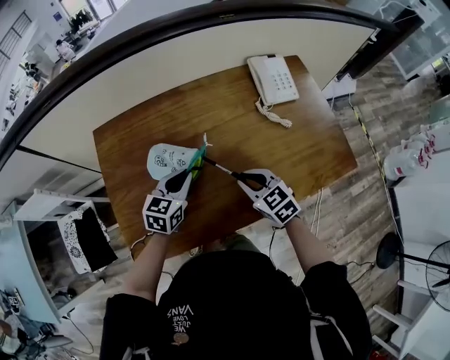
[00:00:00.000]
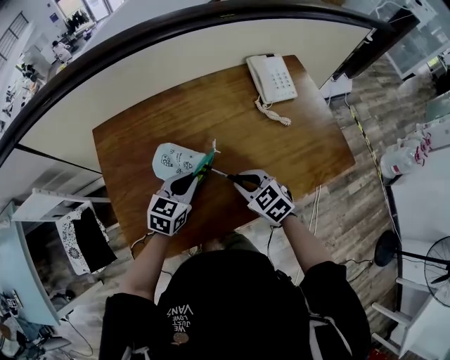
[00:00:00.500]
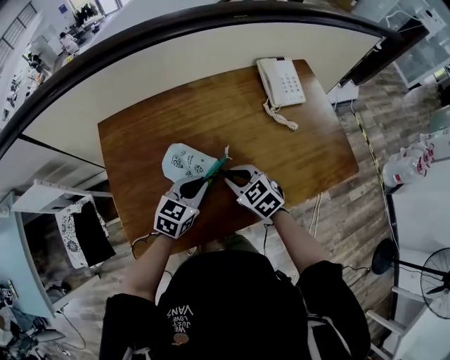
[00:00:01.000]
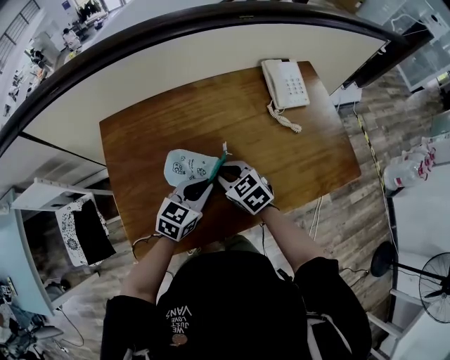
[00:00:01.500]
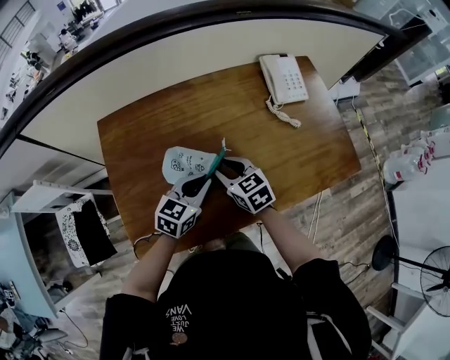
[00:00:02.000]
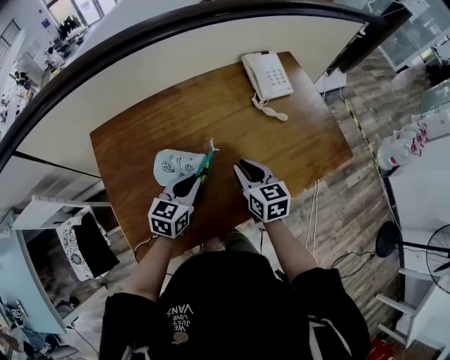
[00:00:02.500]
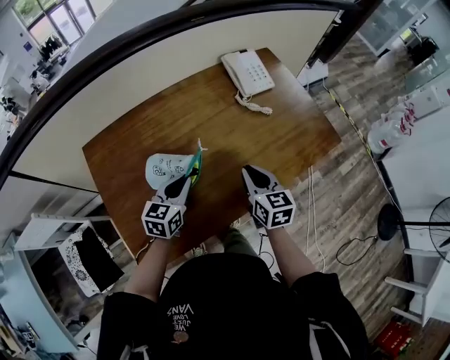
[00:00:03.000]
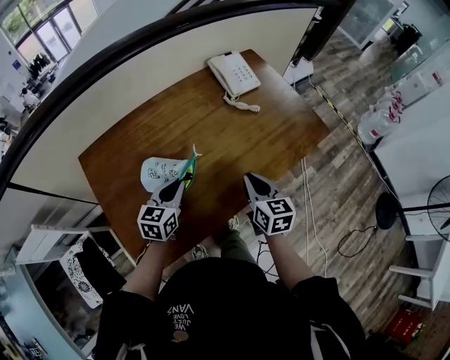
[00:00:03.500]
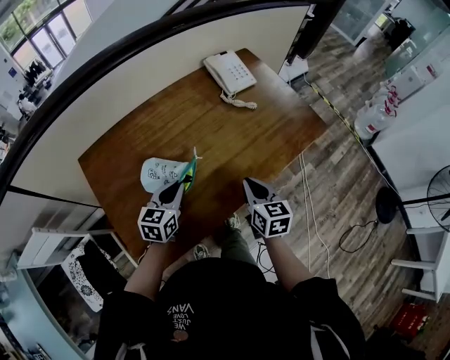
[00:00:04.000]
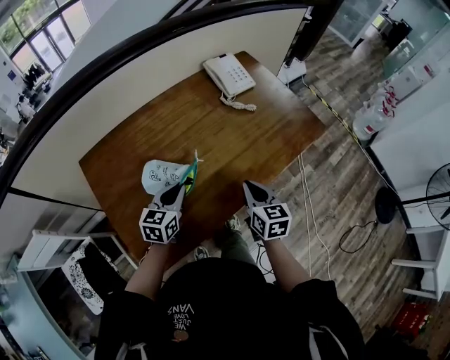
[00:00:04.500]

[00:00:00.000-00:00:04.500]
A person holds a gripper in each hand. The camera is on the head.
00:00:00.000 to 00:00:02.000: The right gripper travels to the left by approximately 10 cm.
00:00:02.000 to 00:00:04.500: The right gripper heads to the right and backward, covering about 20 cm, swivels about 50 degrees, and closes up.

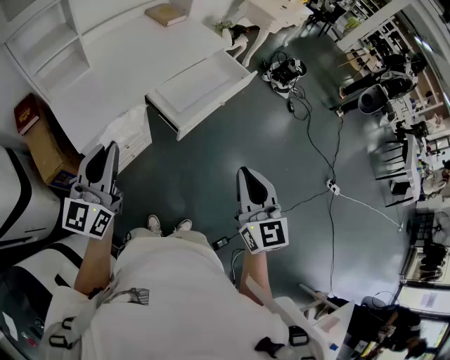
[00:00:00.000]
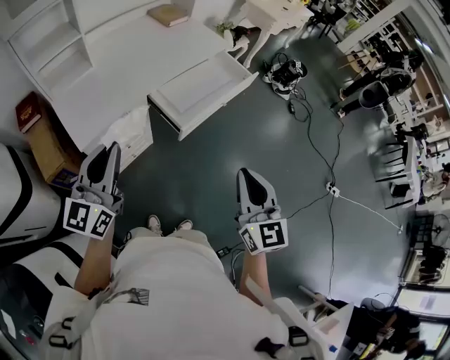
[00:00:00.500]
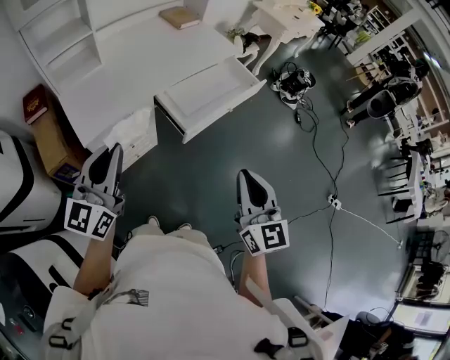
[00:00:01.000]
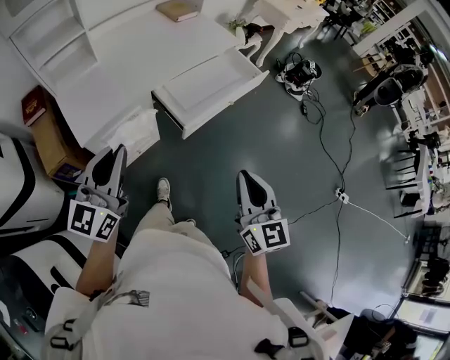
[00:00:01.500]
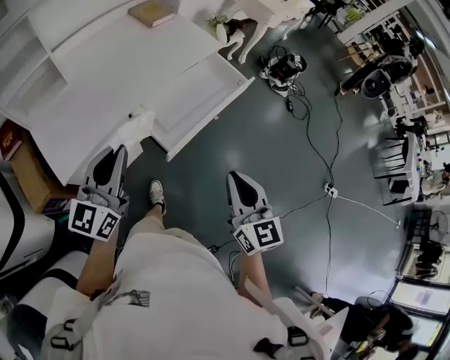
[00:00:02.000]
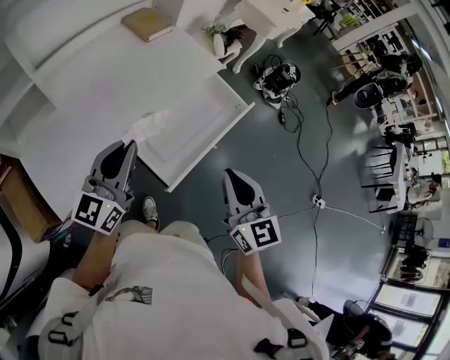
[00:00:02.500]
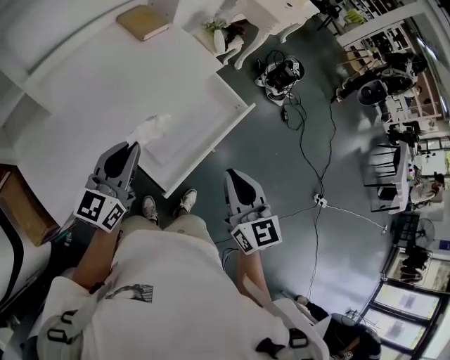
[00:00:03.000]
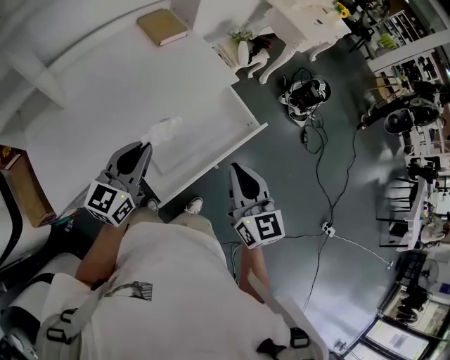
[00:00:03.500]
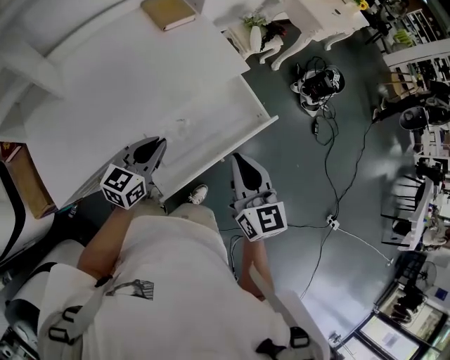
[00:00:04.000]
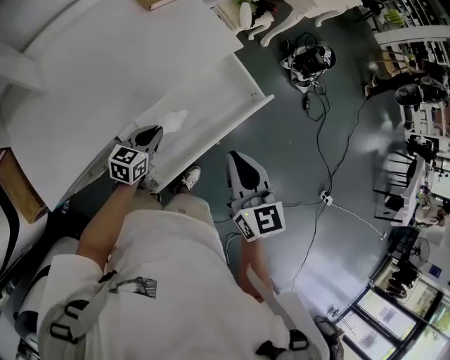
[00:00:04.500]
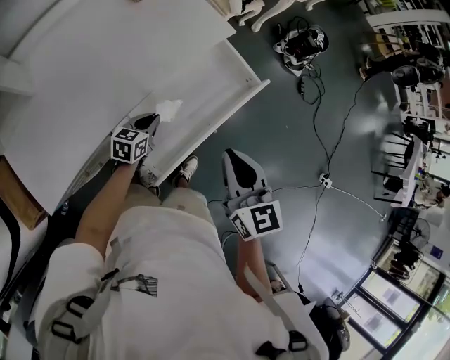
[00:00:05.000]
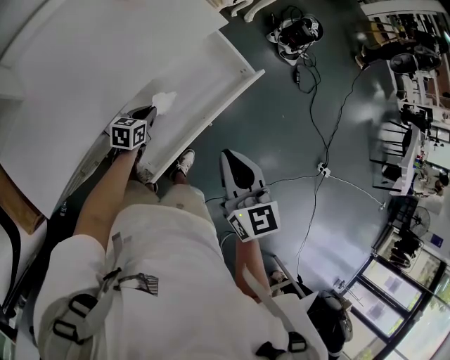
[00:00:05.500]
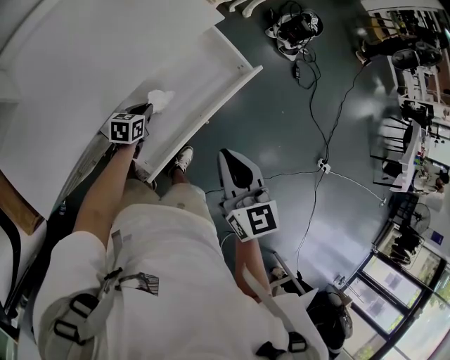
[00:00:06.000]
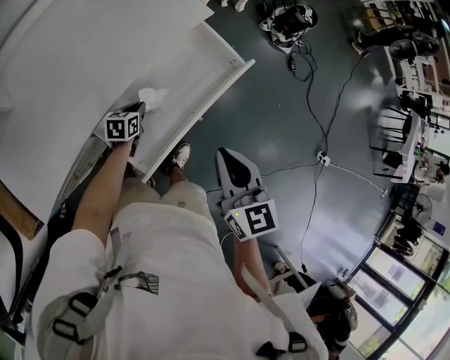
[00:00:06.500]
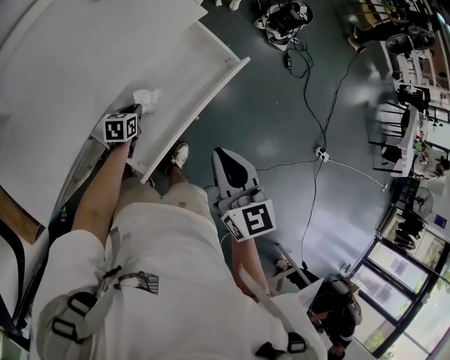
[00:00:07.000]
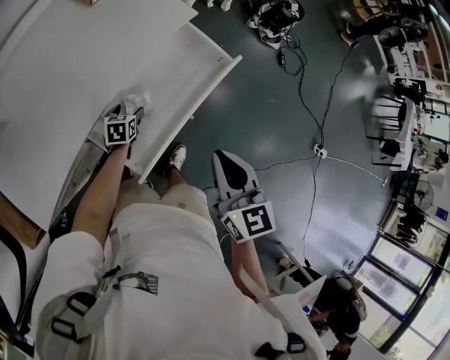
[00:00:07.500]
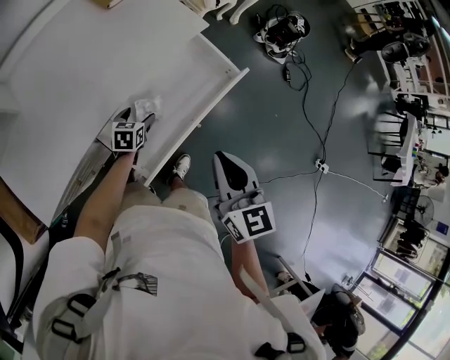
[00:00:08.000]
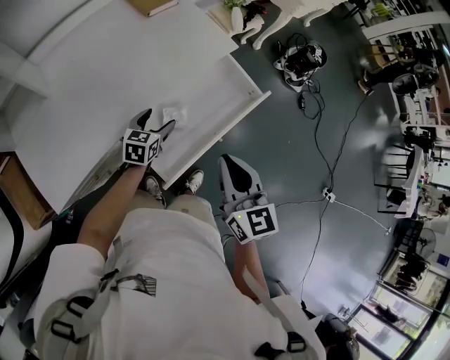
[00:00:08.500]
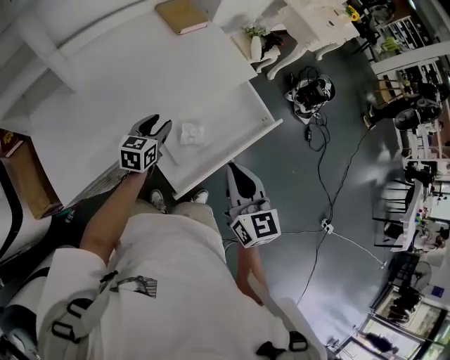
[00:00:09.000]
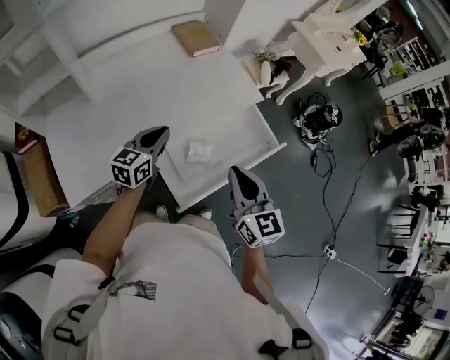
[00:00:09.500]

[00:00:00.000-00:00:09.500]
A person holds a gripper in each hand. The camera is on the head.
00:00:00.000 to 00:00:02.000: The grippers both shift forward by about 15 cm.
00:00:02.000 to 00:00:04.000: The left gripper travels forward and downward by some 35 cm, and swivels approximately 20 degrees, while the right gripper is displaced forward by some 35 cm.
00:00:04.000 to 00:00:05.500: The left gripper shifts about 25 cm downward, and changes its angle by approximately 30 degrees, while the right gripper goes some 5 cm backward.
00:00:05.500 to 00:00:07.500: The left gripper opens up.
00:00:07.500 to 00:00:09.500: The left gripper goes about 30 cm upward and to the left, angles its fingers upward, by approximately 40 degrees, and closes its fingers. Meanwhile the right gripper is displaced to the left by some 10 cm, and swivels roughly 20 degrees.

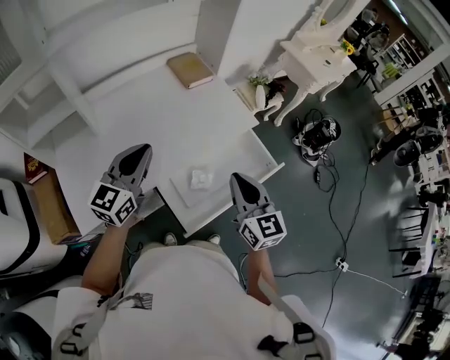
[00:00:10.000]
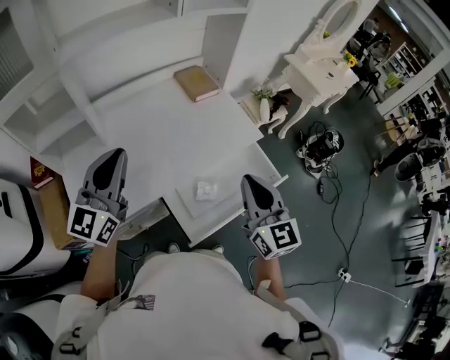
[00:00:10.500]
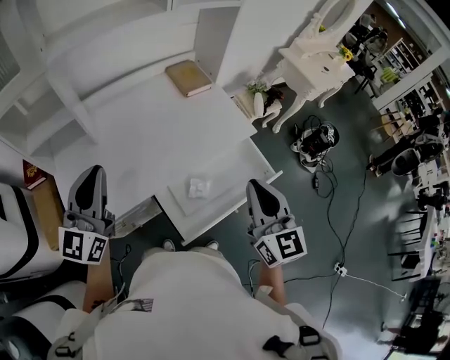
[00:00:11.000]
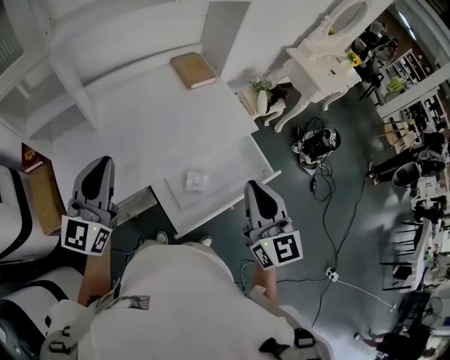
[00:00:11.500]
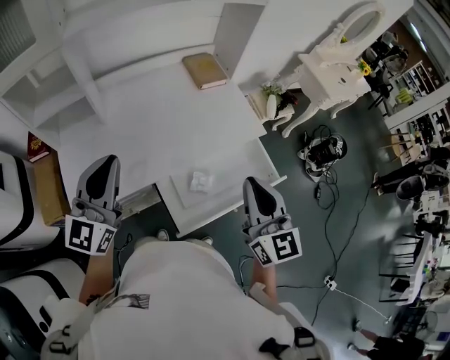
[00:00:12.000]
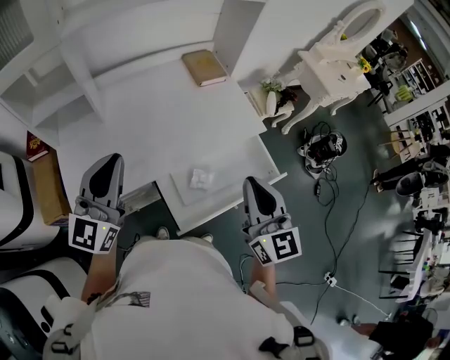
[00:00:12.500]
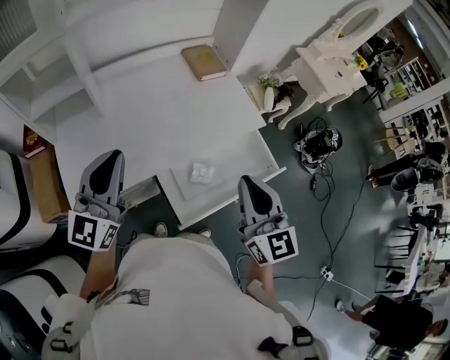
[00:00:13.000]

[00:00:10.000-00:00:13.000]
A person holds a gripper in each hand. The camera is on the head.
00:00:10.000 to 00:00:11.500: The left gripper is displaced upward, to the left and backward by approximately 10 cm. Meanwhile the right gripper shifts about 10 cm upward.
00:00:11.500 to 00:00:13.000: The grippers move only a little.

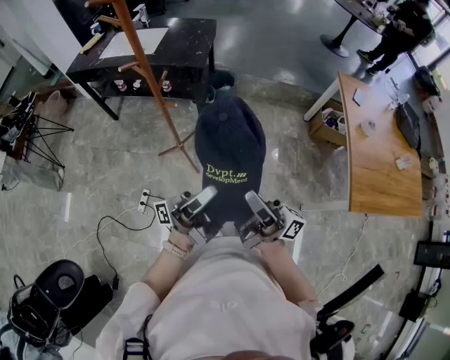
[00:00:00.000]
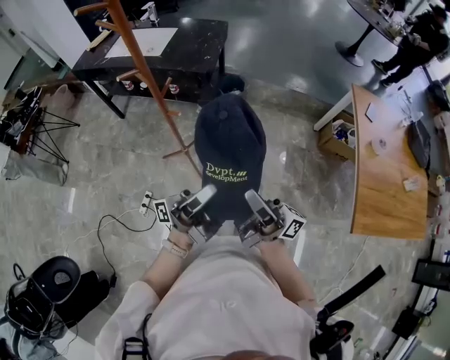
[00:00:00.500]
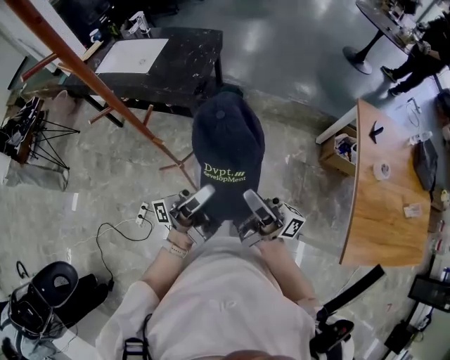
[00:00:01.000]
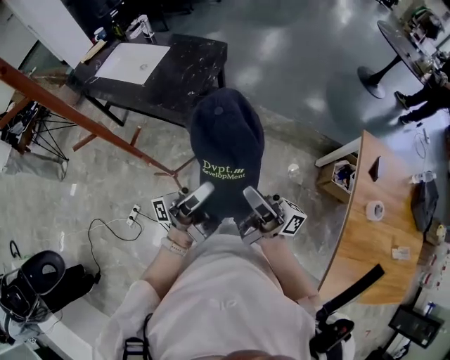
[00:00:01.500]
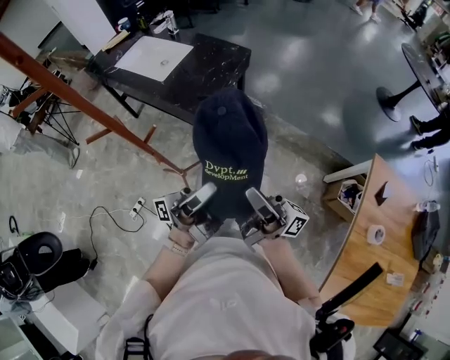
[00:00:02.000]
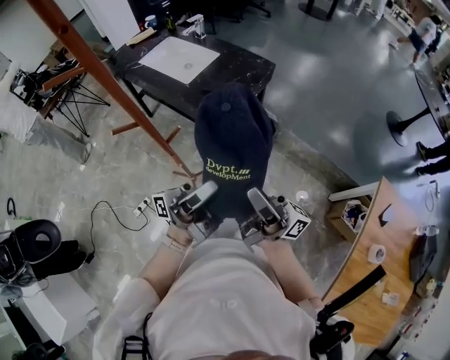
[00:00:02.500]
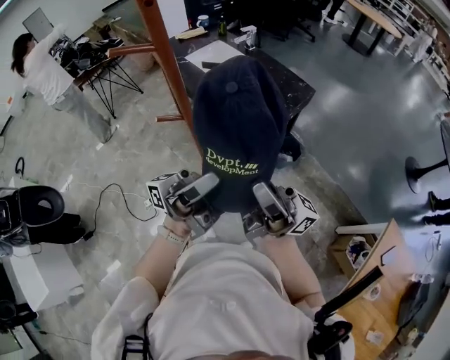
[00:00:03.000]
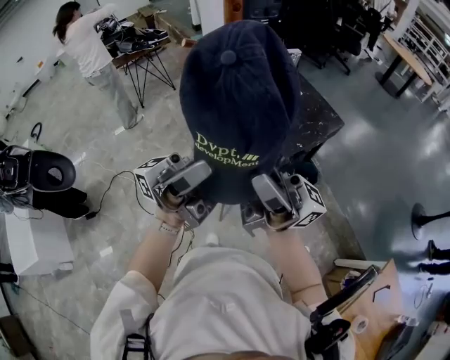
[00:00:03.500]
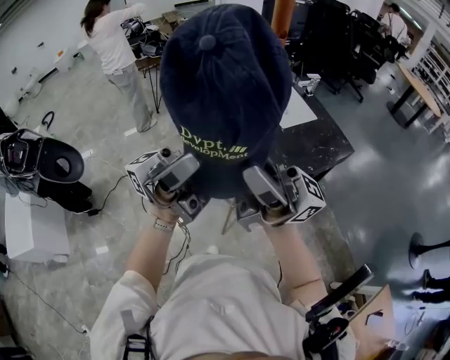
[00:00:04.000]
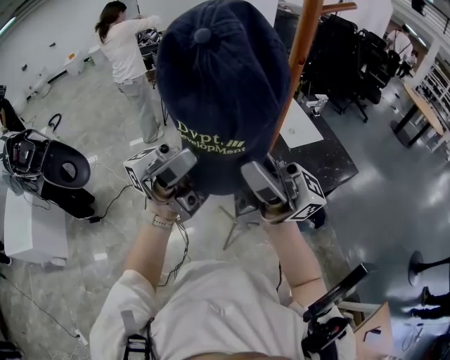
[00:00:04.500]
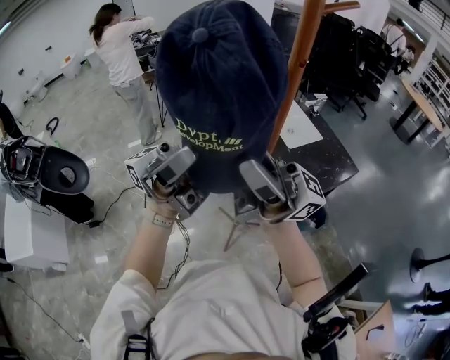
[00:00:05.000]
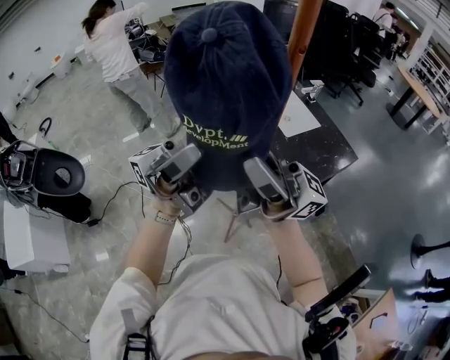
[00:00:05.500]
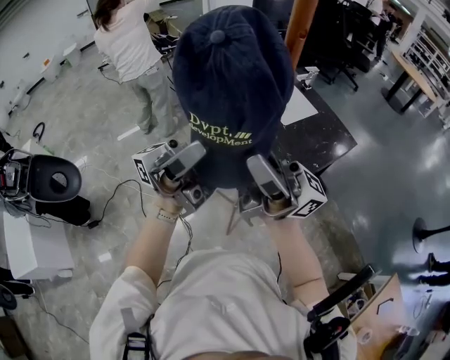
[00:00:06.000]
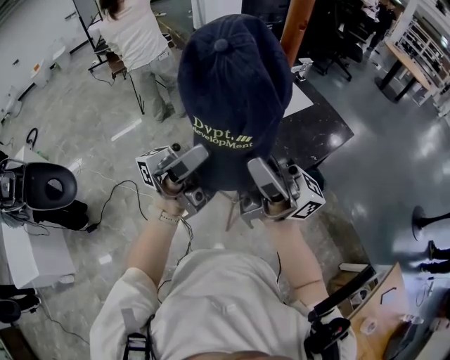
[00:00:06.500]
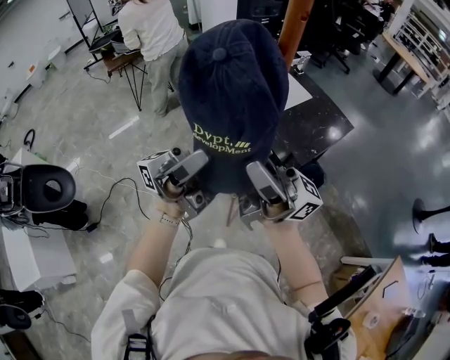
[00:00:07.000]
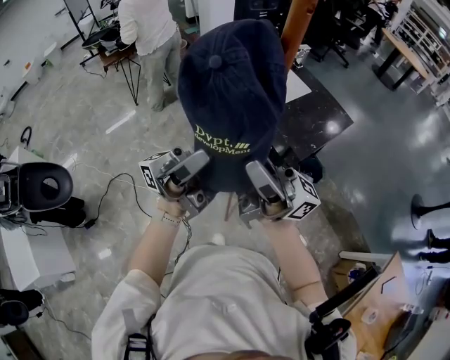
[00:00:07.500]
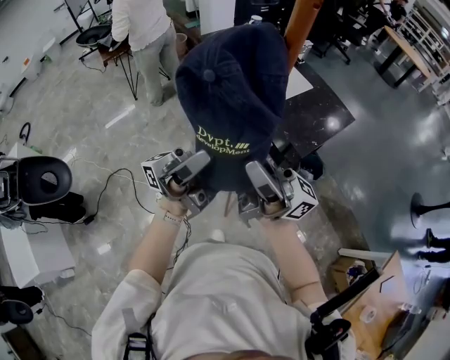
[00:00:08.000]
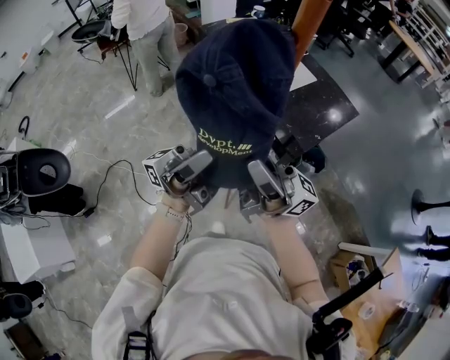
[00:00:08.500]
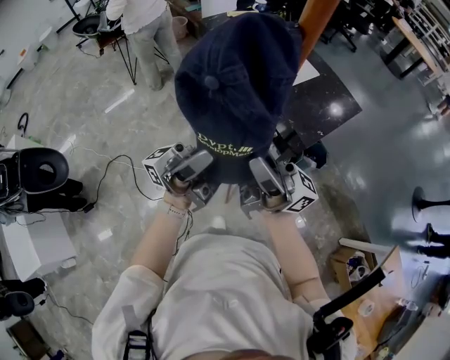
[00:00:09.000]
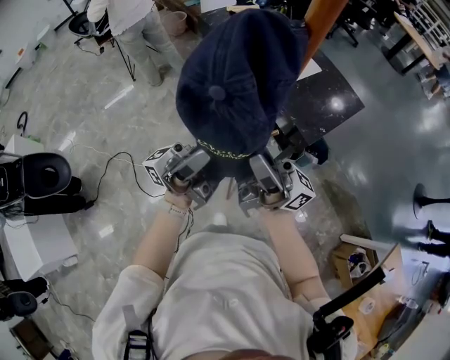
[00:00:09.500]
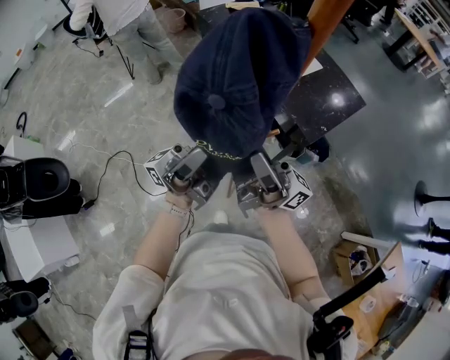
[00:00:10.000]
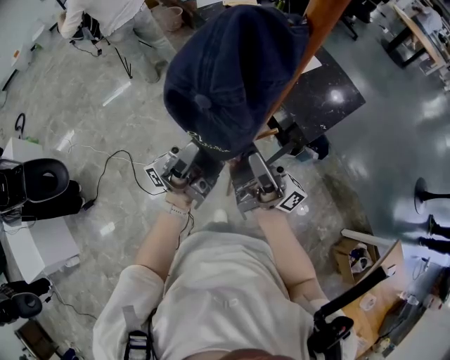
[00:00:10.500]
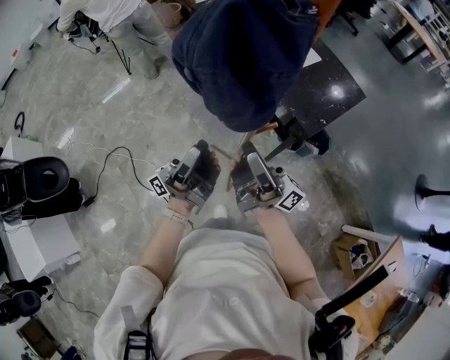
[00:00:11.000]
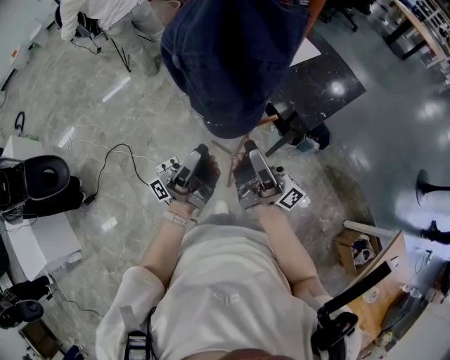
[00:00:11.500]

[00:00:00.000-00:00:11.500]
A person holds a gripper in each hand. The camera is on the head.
00:00:00.000 to 00:00:02.000: The two grippers travel together, forward, approximately 40 cm. The right gripper changes its angle by roughly 20 degrees, while the left gripper rotates some 20 degrees.
00:00:02.000 to 00:00:04.000: The left gripper moves approximately 40 cm, and rotates around the line of its fingers by roughly 50 degrees, clockwise from behind. Meanwhile the right gripper shifts by approximately 40 cm, and swivels roughly 50 degrees.
00:00:04.000 to 00:00:06.000: The right gripper shifts by about 10 cm. Meanwhile the left gripper moves roughly 10 cm.
00:00:06.000 to 00:00:07.500: Both grippers travel together downward, roughly 10 cm.
00:00:07.500 to 00:00:09.500: The grippers both shift downward by roughly 10 cm.
00:00:09.500 to 00:00:11.500: The two grippers go approximately 15 cm downward. The left gripper rotates approximately 30 degrees; the right gripper changes its angle by about 20 degrees.
